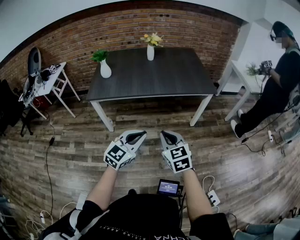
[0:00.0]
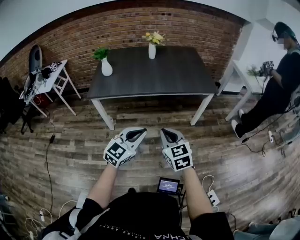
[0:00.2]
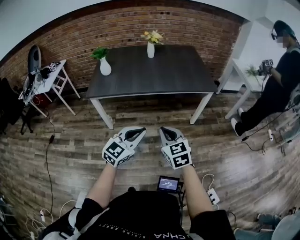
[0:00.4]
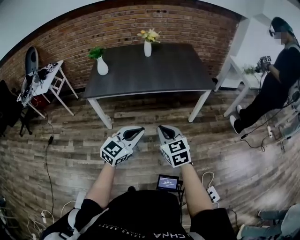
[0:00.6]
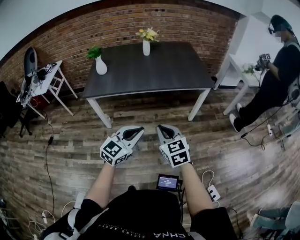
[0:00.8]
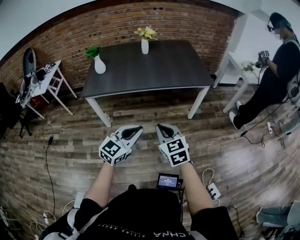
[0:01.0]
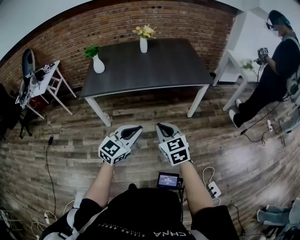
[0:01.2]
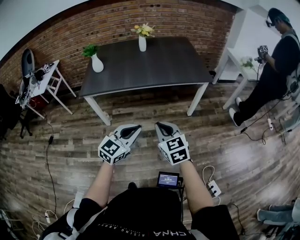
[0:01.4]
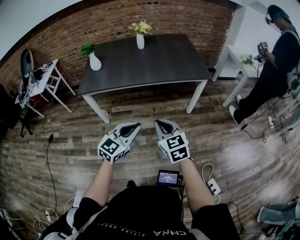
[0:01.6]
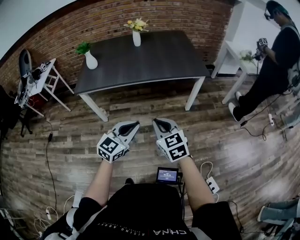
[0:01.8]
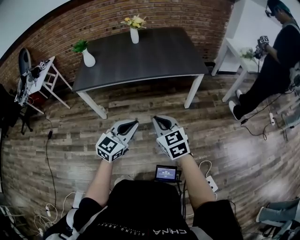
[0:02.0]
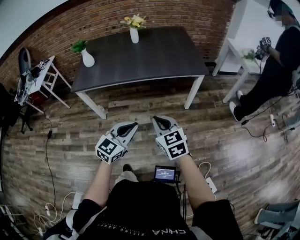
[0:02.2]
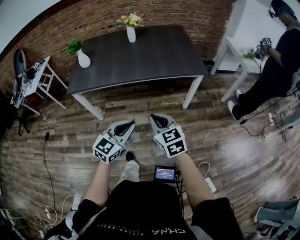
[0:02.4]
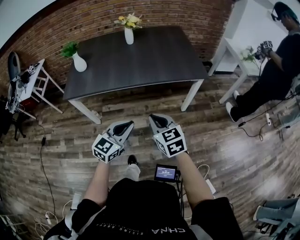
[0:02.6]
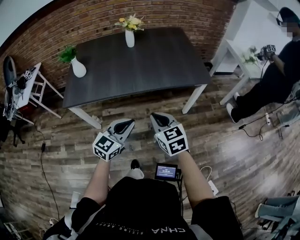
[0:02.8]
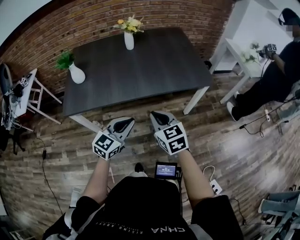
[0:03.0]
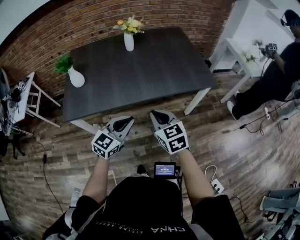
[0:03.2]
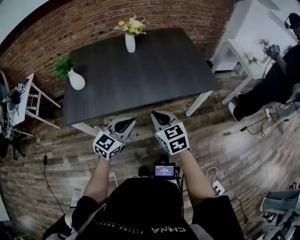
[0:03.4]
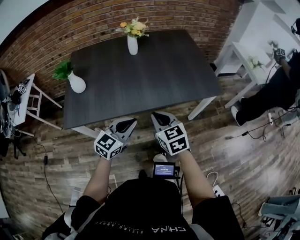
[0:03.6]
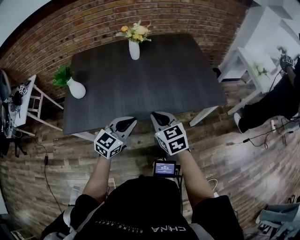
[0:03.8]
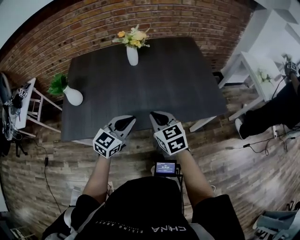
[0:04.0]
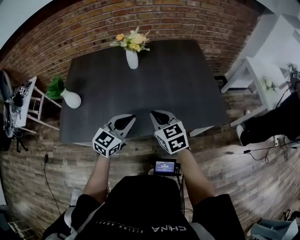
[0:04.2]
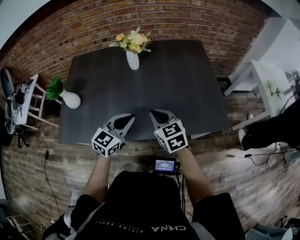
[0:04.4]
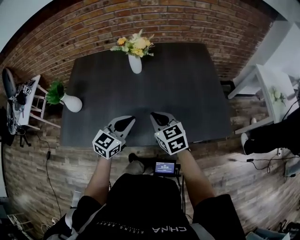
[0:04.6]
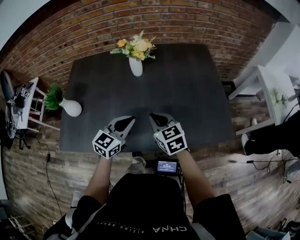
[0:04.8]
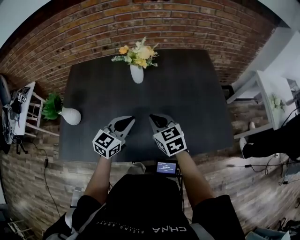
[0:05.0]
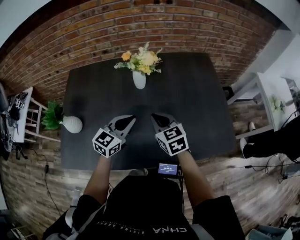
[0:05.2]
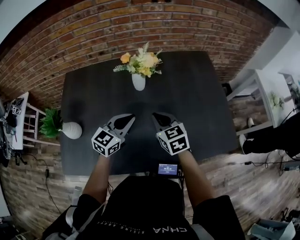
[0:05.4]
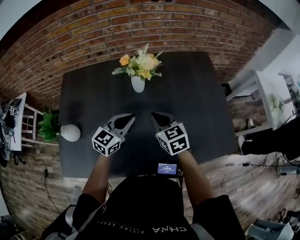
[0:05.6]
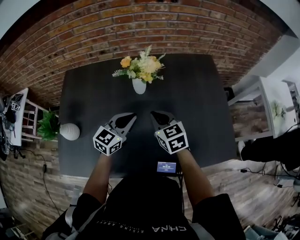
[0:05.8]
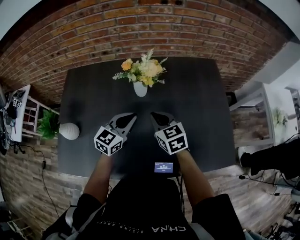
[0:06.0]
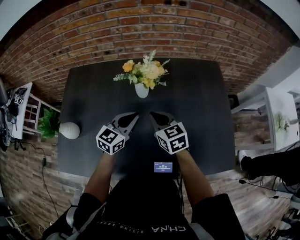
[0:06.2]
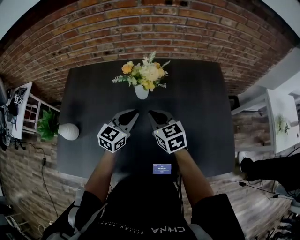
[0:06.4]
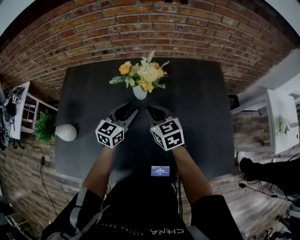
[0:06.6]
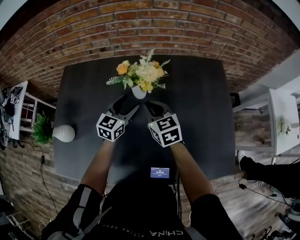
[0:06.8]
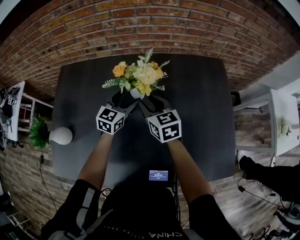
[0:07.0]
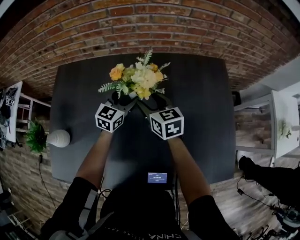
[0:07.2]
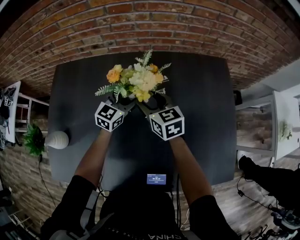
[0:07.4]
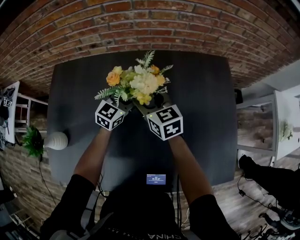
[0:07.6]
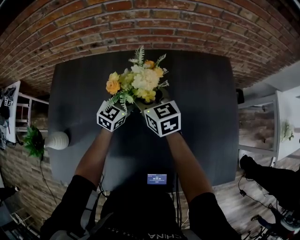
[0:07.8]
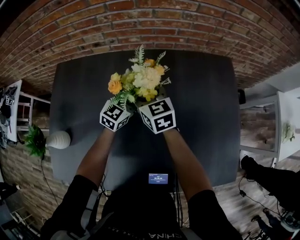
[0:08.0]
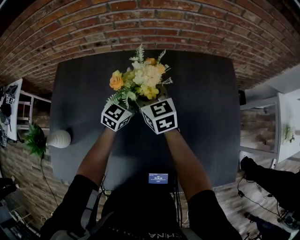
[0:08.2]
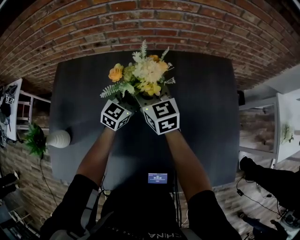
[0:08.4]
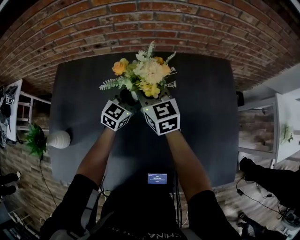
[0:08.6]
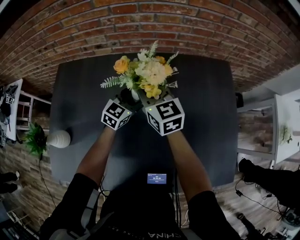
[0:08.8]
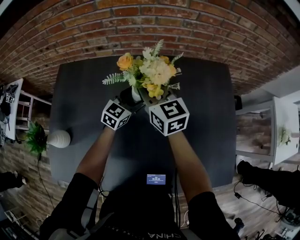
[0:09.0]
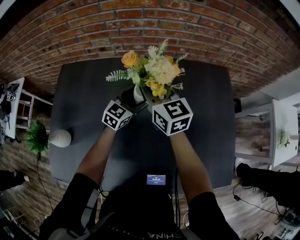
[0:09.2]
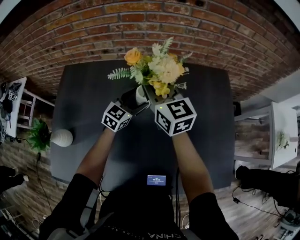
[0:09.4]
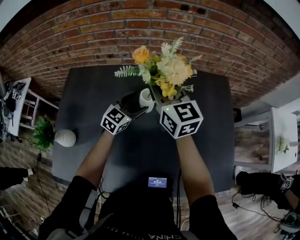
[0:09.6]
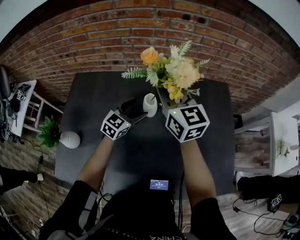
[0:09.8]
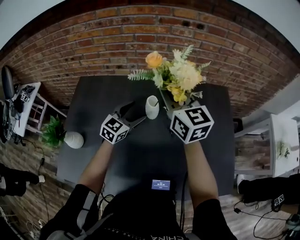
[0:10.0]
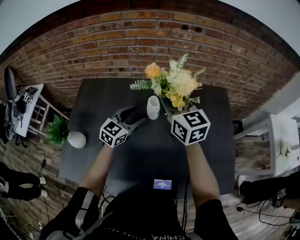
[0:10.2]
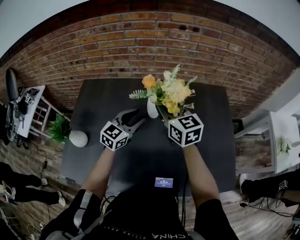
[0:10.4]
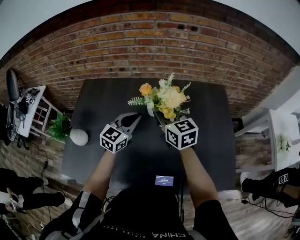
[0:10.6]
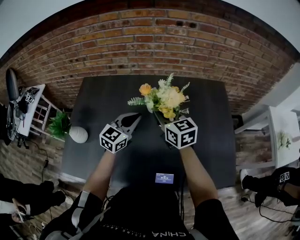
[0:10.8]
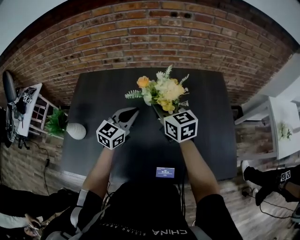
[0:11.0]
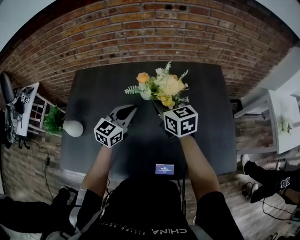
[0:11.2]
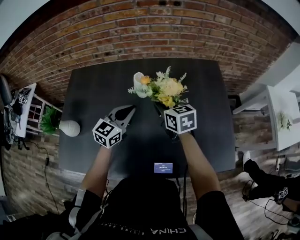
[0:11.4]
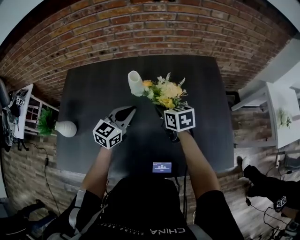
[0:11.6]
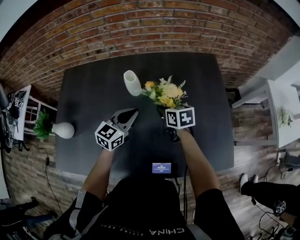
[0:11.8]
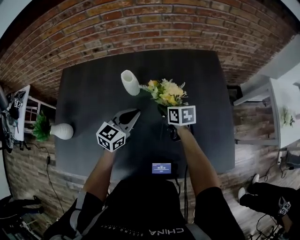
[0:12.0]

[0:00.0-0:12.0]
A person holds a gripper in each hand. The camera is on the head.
0:00.0 to 0:01.6: The grippers stay close to where they were, moving slightly.
0:01.6 to 0:03.0: The grippers both shift forward by about 25 cm.
0:03.0 to 0:04.4: Both grippers move forward, approximately 35 cm.
0:04.4 to 0:06.0: The two grippers go roughly 25 cm forward.
0:06.0 to 0:07.6: The grippers both shift forward by about 20 cm. The left gripper opens up. The right gripper opens up.
0:07.6 to 0:09.0: The right gripper goes some 10 cm upward, and closes.
0:09.0 to 0:10.4: Both grippers move backward and upward, approximately 15 cm. The left gripper closes its fingers.
0:10.4 to 0:12.0: The right gripper shifts approximately 30 cm downward and to the right, and changes its angle by roughly 40 degrees, while the left gripper goes roughly 15 cm to the right and downward, and closes up.

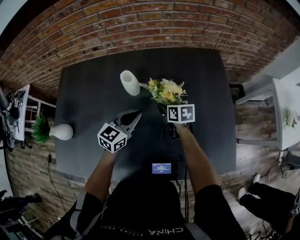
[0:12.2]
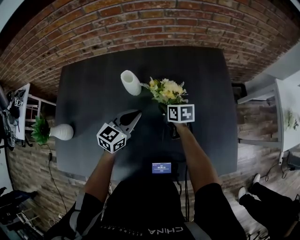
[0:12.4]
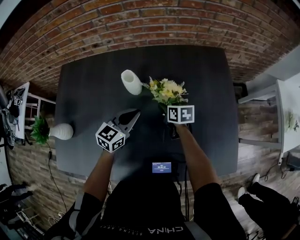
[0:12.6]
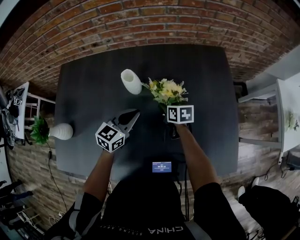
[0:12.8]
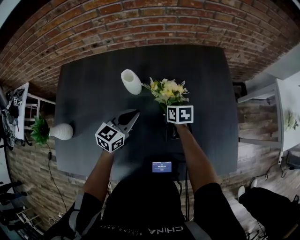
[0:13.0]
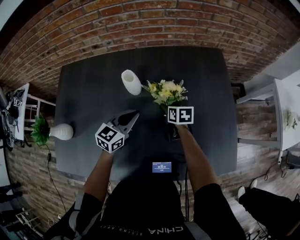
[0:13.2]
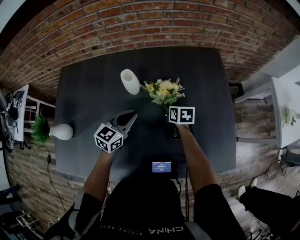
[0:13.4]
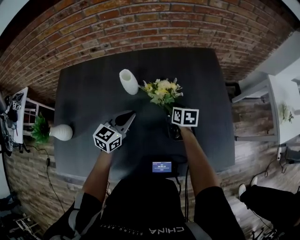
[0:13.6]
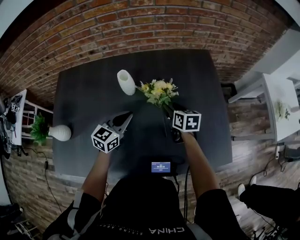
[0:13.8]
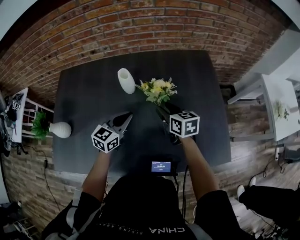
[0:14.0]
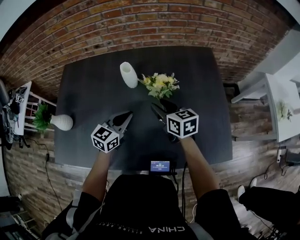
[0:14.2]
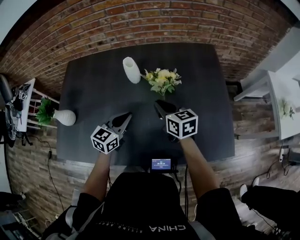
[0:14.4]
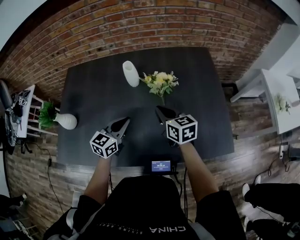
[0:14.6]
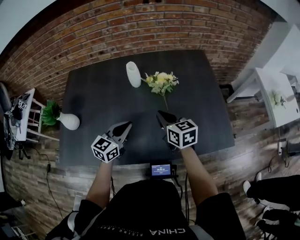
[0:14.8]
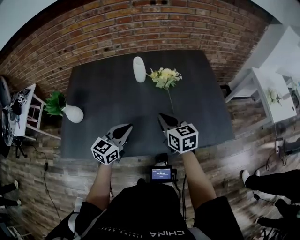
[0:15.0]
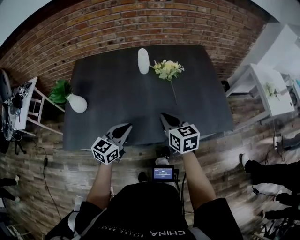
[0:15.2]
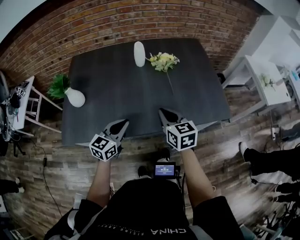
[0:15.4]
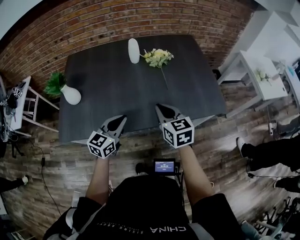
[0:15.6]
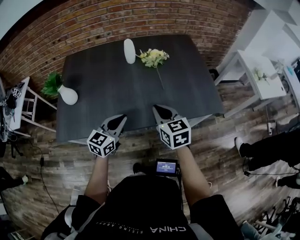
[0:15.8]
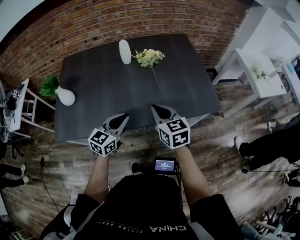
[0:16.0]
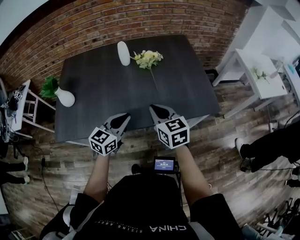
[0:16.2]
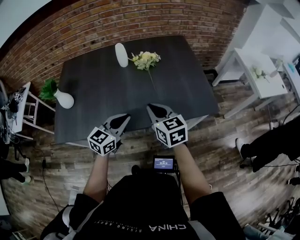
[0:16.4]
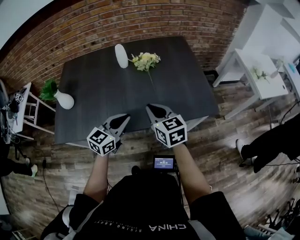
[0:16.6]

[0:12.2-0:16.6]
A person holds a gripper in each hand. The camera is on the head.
0:12.2 to 0:13.6: The right gripper goes approximately 5 cm to the right, and opens up.
0:13.6 to 0:15.2: The left gripper goes roughly 30 cm backward. The right gripper travels backward and upward by some 35 cm, swivels about 30 degrees, and closes.
0:15.2 to 0:16.6: The right gripper moves to the right and backward, approximately 10 cm; the left gripper heads to the right, covering about 15 cm.

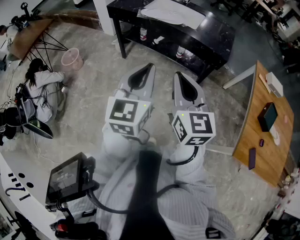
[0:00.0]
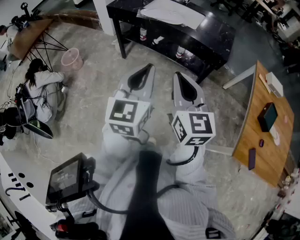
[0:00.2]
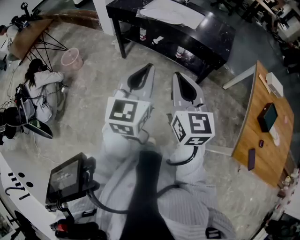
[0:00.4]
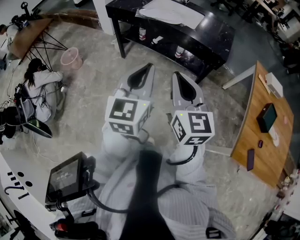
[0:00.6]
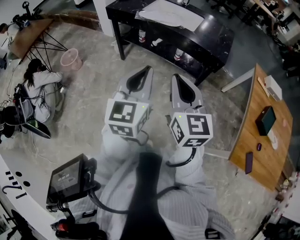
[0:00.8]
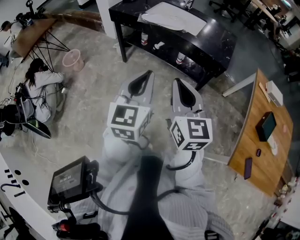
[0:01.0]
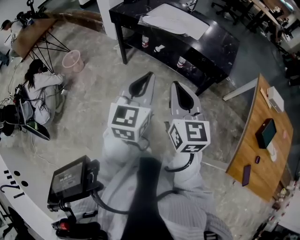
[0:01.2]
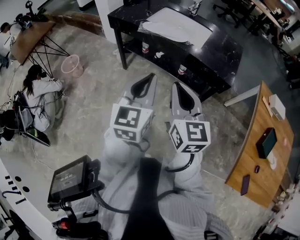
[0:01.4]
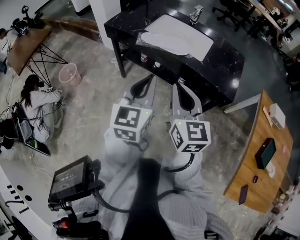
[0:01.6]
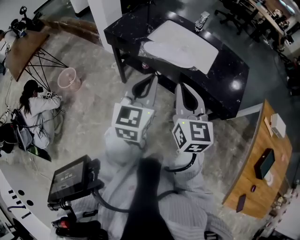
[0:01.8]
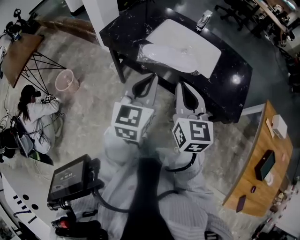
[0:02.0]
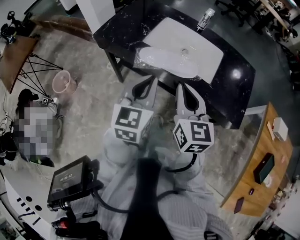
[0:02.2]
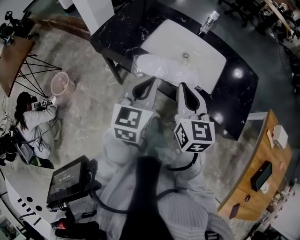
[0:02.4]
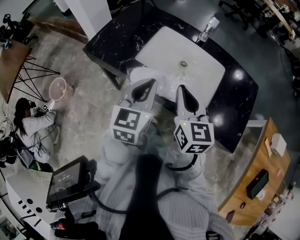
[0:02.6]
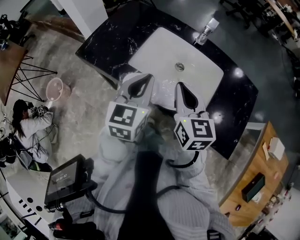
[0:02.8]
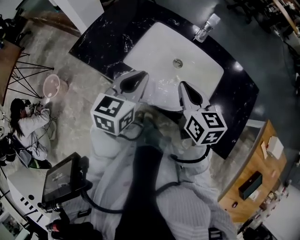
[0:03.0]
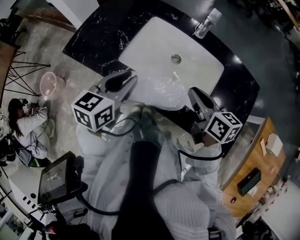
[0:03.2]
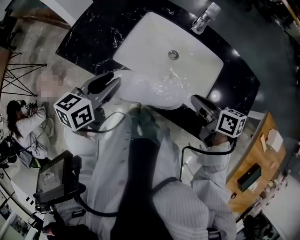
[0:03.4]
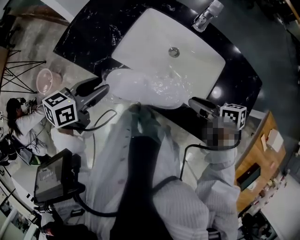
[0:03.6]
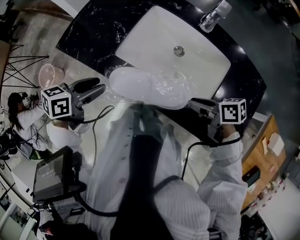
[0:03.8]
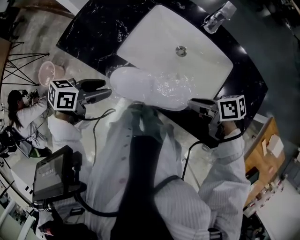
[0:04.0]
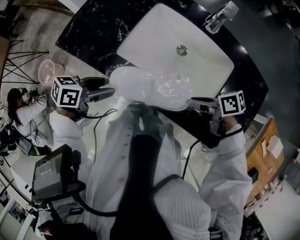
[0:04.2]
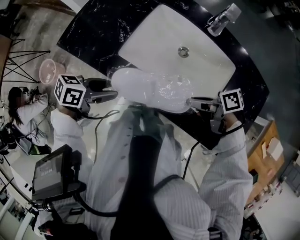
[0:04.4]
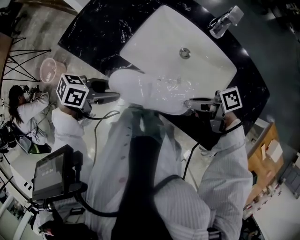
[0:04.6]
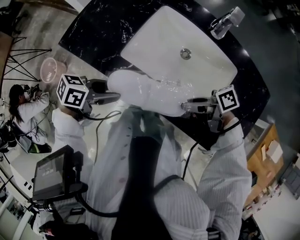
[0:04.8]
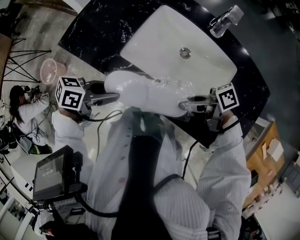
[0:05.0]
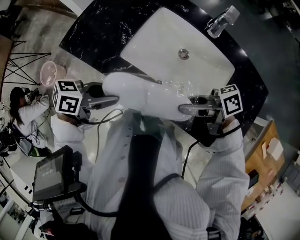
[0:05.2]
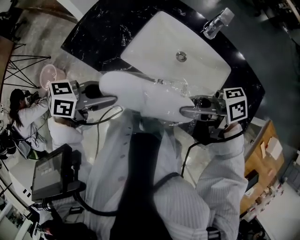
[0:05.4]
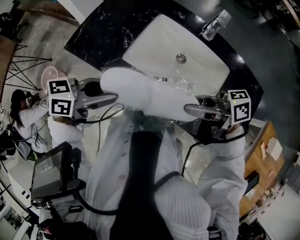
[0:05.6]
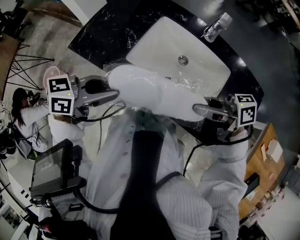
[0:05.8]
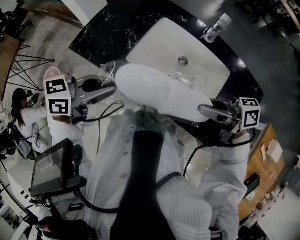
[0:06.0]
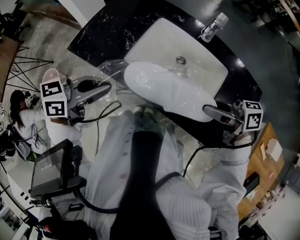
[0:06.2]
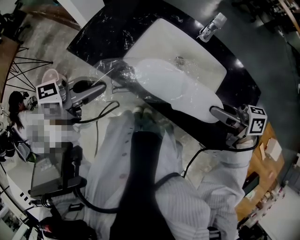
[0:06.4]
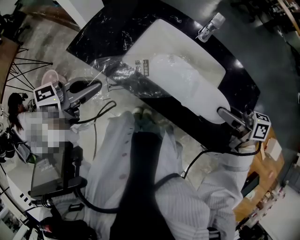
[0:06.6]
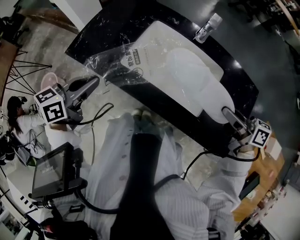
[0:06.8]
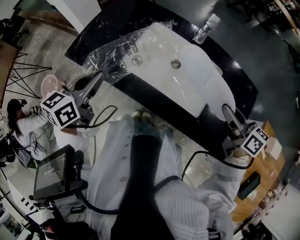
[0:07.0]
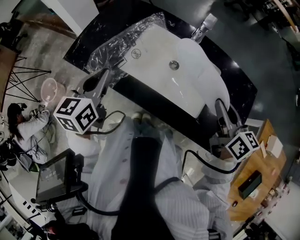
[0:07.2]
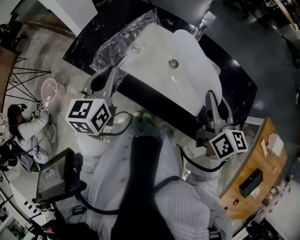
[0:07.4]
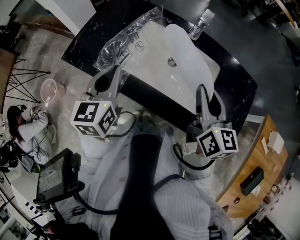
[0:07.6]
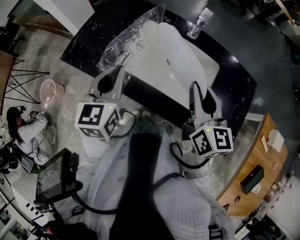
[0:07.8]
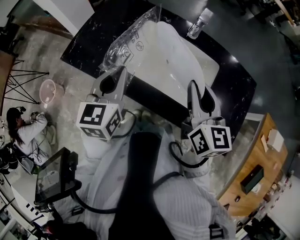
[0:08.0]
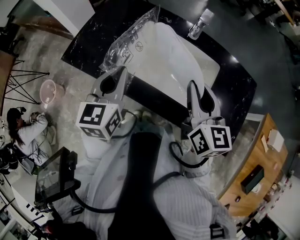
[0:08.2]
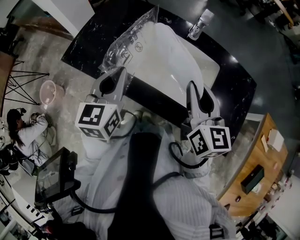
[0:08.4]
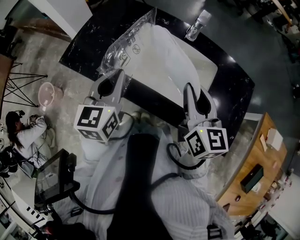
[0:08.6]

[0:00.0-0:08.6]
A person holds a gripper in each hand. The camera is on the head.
0:00.0 to 0:01.4: Both grippers travel together forward, about 15 cm.
0:01.4 to 0:02.8: The two grippers travel together, forward, some 50 cm.
0:02.8 to 0:04.4: The two grippers go about 15 cm downward. The left gripper turns by some 60 degrees, and opens, while the right gripper swivels some 80 degrees, and opens up.
0:04.4 to 0:05.8: Both grippers move upward, some 15 cm. The right gripper turns by roughly 30 degrees. Meanwhile the left gripper turns by some 20 degrees, and closes up.
0:05.8 to 0:07.2: The right gripper changes place by some 10 cm, and rotates roughly 70 degrees, while the left gripper moves some 10 cm, swivels approximately 50 degrees, and closes.
0:07.2 to 0:08.6: The left gripper shifts some 5 cm to the right. Meanwhile the right gripper moves to the left, about 10 cm.
